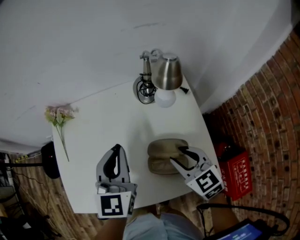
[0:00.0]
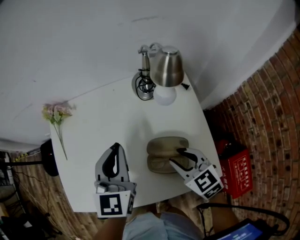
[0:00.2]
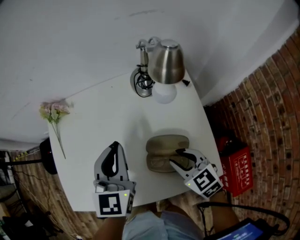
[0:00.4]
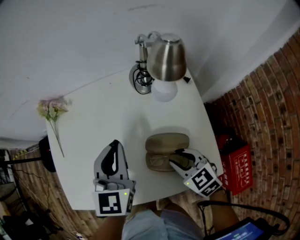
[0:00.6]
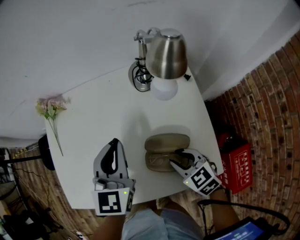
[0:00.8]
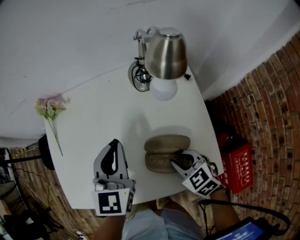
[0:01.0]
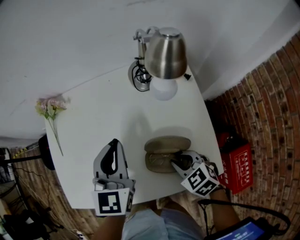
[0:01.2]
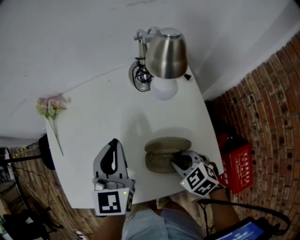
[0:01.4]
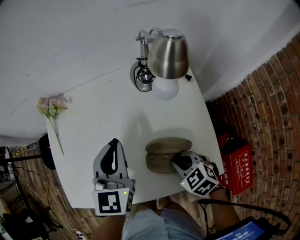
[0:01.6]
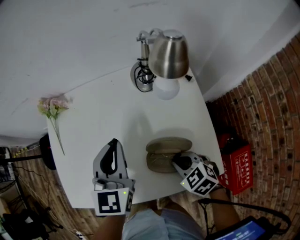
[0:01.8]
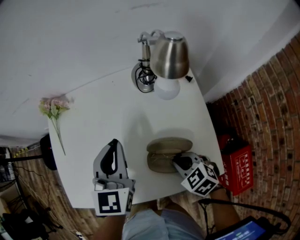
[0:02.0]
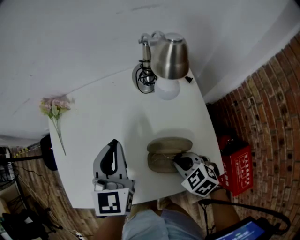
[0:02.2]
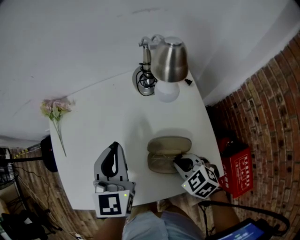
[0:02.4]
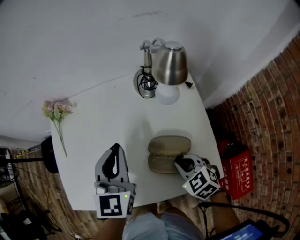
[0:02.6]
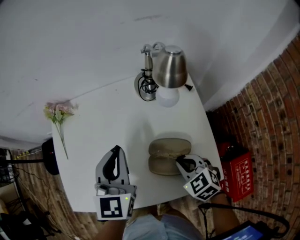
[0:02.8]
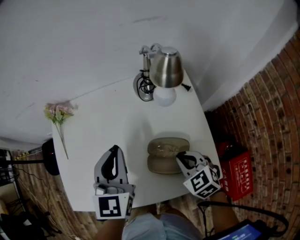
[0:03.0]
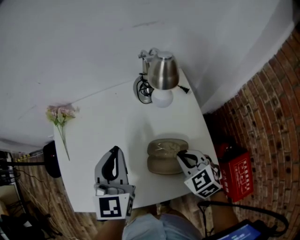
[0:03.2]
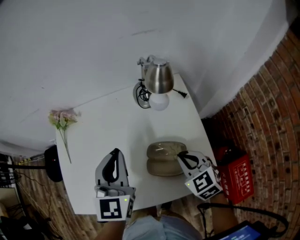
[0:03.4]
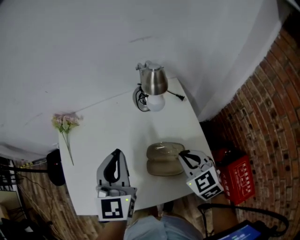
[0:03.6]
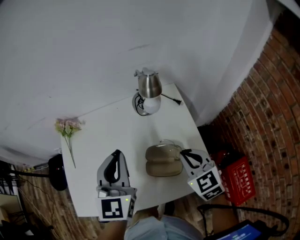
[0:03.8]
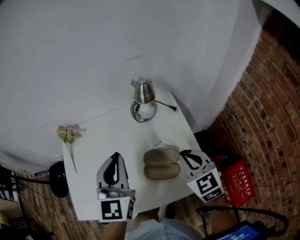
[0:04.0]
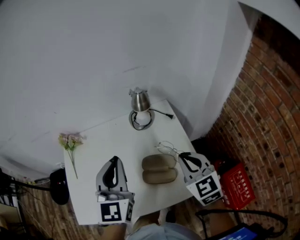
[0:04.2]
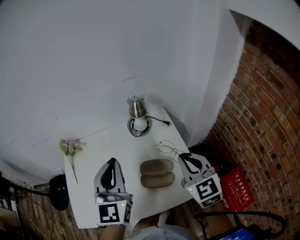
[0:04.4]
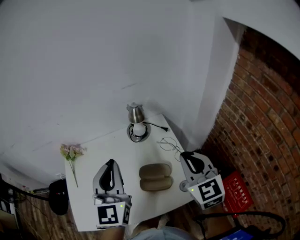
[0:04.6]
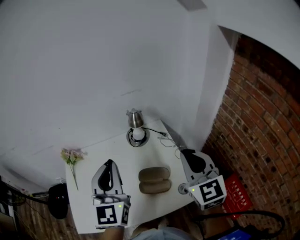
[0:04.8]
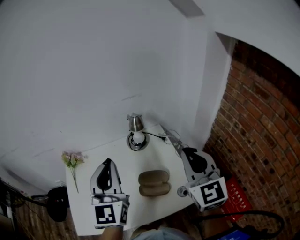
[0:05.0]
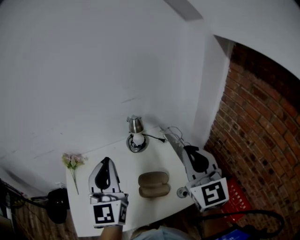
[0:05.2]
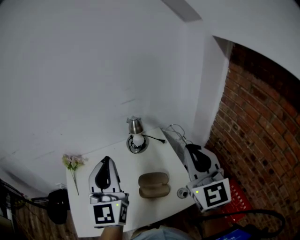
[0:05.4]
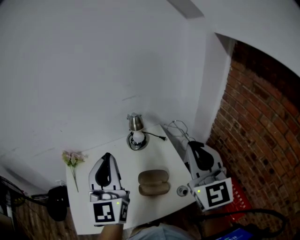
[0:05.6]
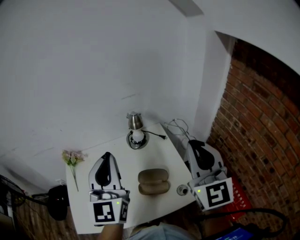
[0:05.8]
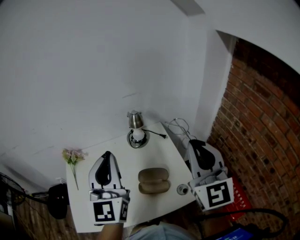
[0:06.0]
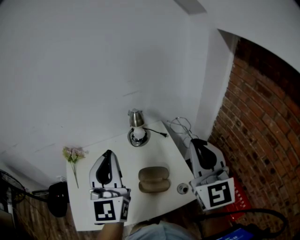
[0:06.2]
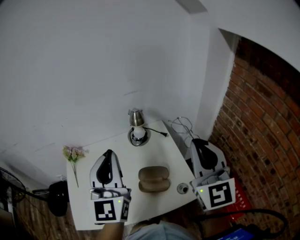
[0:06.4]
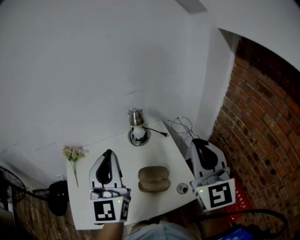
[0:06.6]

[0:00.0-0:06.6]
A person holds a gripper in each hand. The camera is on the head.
0:00.0 to 0:01.6: The right gripper goes some 10 cm downward, turns by approximately 30 degrees, and closes its fingers.
0:01.6 to 0:03.2: The right gripper goes some 5 cm upward.
0:03.2 to 0:05.0: The left gripper travels upward by about 20 cm, and rotates some 20 degrees. Meanwhile the right gripper travels upward by approximately 30 cm, and angles its fingers upward, by approximately 40 degrees.
0:05.0 to 0:06.6: The right gripper moves roughly 5 cm.

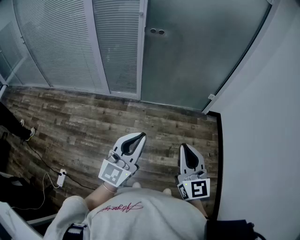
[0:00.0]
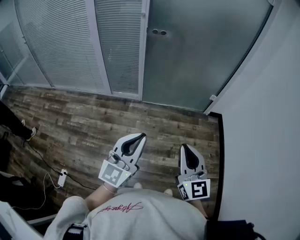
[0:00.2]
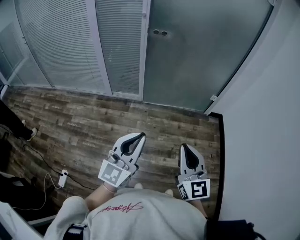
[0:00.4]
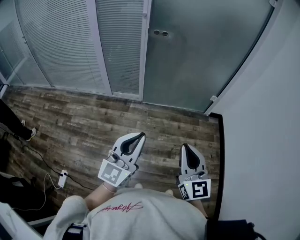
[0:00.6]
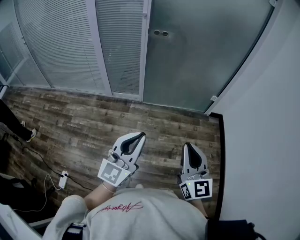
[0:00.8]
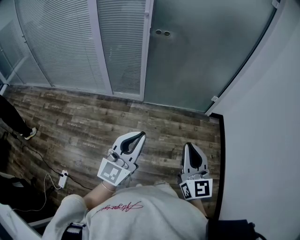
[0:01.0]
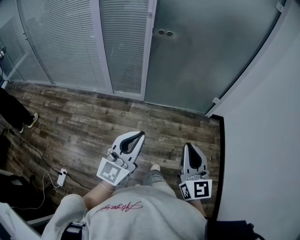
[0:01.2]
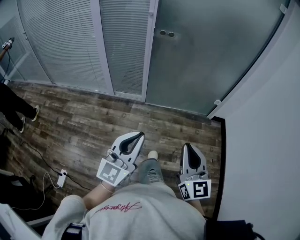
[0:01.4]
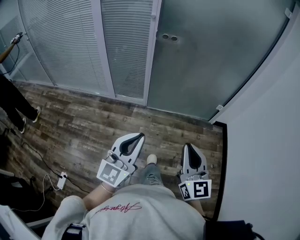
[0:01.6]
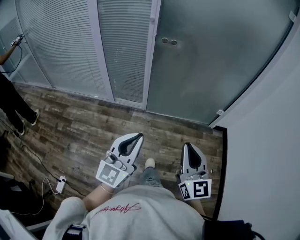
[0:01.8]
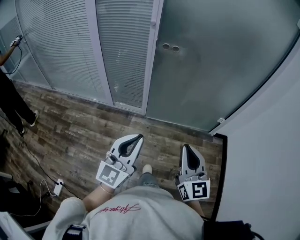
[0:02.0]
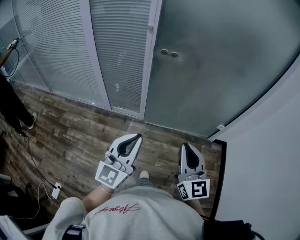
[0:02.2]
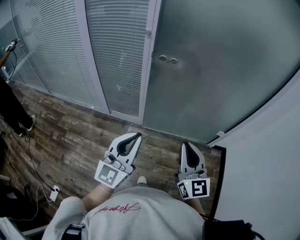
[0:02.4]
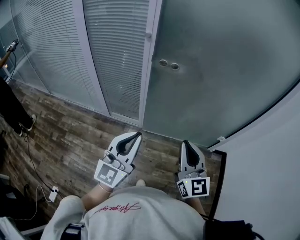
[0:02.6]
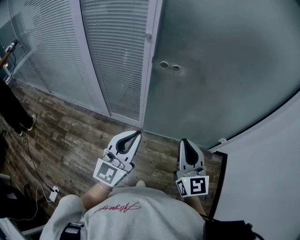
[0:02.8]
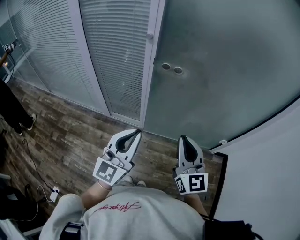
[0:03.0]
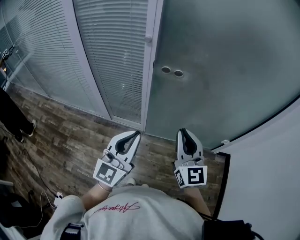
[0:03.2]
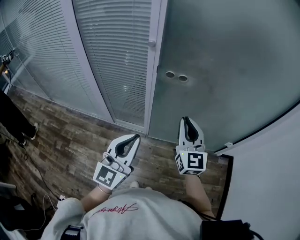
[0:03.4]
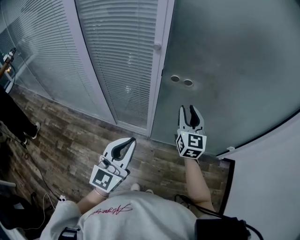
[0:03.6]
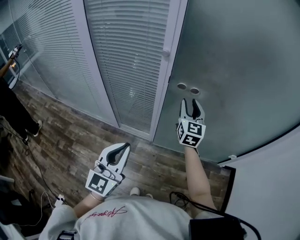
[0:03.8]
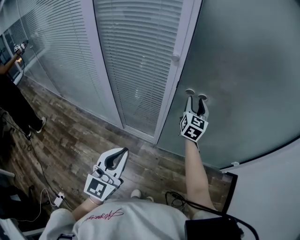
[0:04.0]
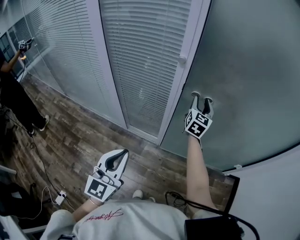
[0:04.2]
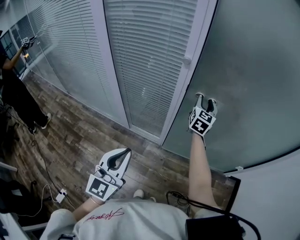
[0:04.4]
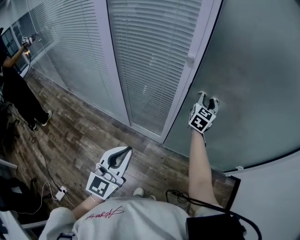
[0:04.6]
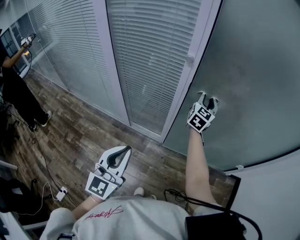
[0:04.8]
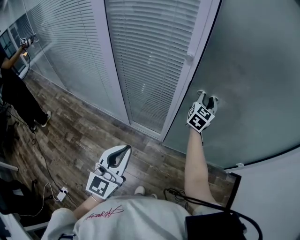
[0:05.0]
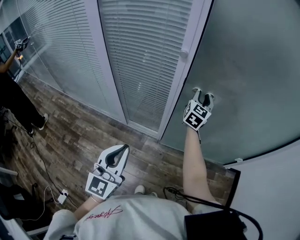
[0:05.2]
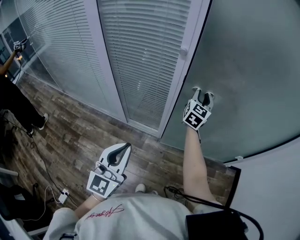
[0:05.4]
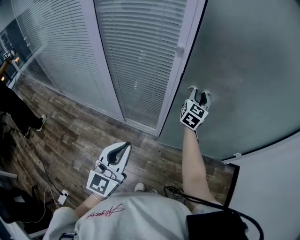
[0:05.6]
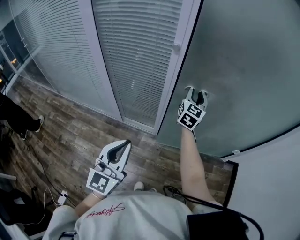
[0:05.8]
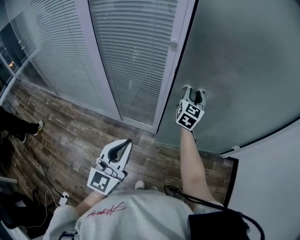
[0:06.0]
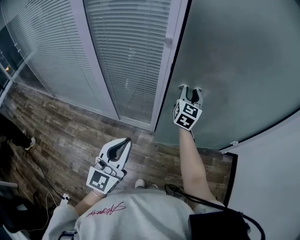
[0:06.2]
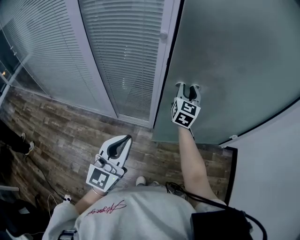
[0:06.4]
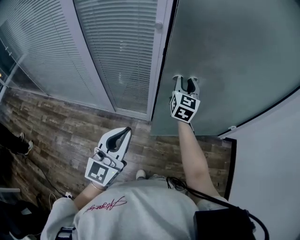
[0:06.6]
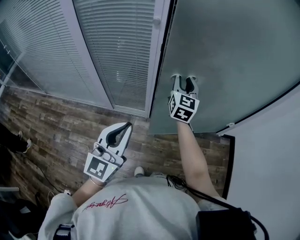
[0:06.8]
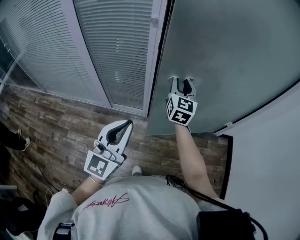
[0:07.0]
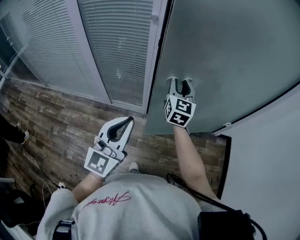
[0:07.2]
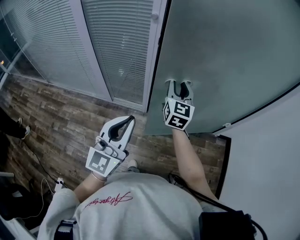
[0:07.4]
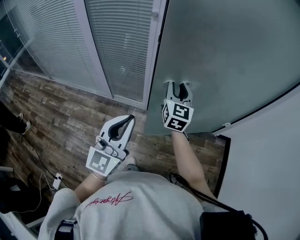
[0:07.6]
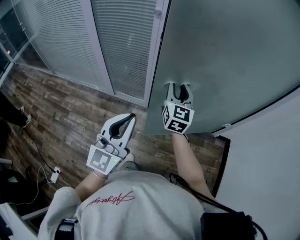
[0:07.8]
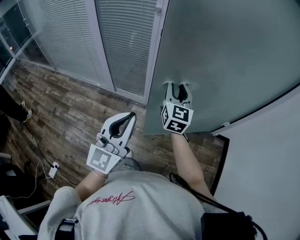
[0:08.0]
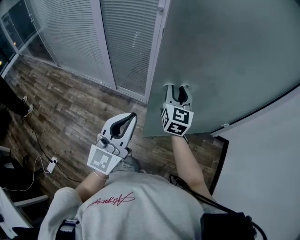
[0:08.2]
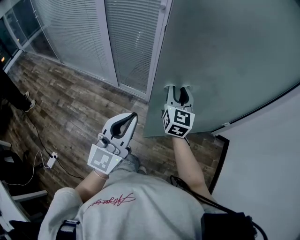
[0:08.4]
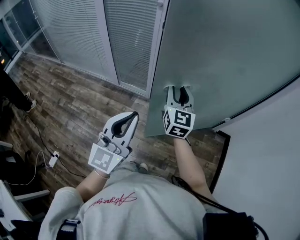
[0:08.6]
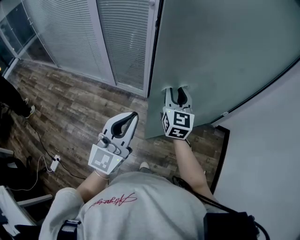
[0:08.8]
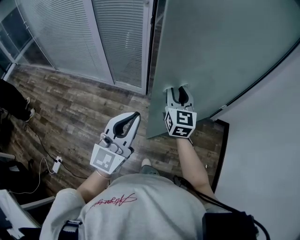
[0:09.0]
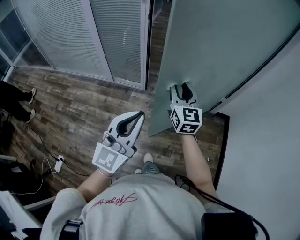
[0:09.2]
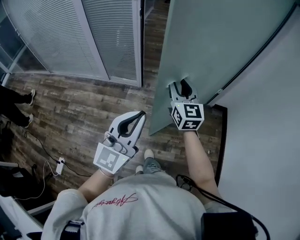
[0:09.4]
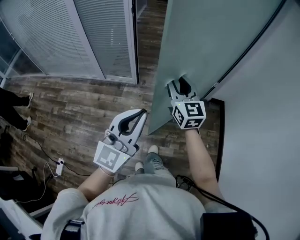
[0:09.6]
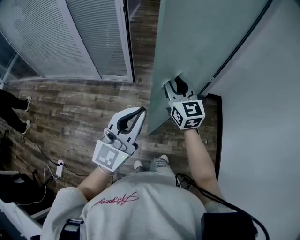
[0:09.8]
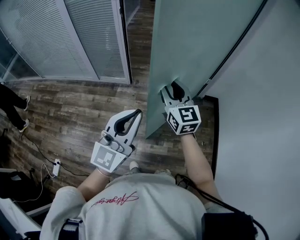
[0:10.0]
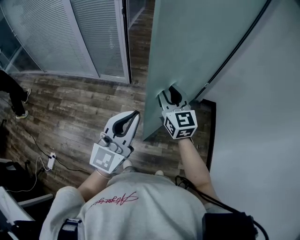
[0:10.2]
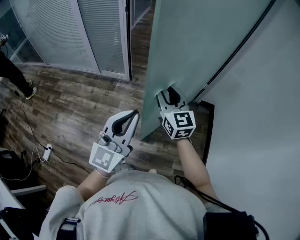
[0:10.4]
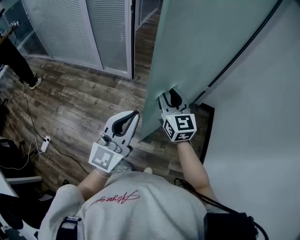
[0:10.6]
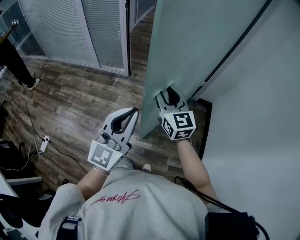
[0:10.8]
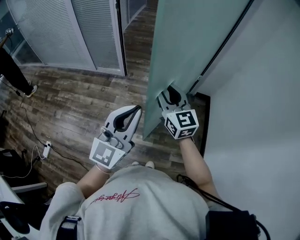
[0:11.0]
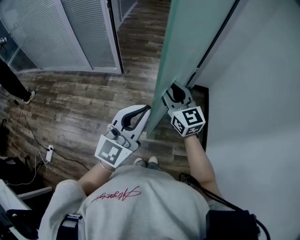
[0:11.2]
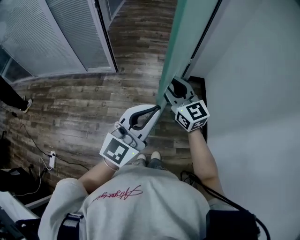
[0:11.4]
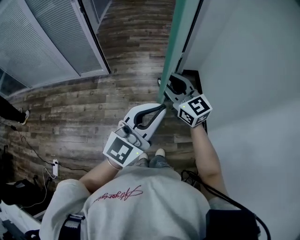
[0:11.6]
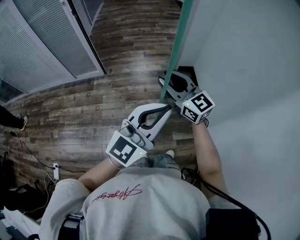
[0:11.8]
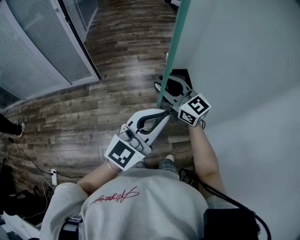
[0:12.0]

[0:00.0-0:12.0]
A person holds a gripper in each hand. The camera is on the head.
0:00.0 to 0:01.6: The right gripper moves forward, some 10 cm; the left gripper travels forward and to the left by some 10 cm.
0:01.6 to 0:03.0: Both grippers travel together forward, about 35 cm.
0:03.0 to 0:04.4: The right gripper heads forward, covering roughly 35 cm, swivels roughly 30 degrees, and opens; the left gripper moves to the left, some 15 cm.
0:04.4 to 0:06.0: The right gripper shifts some 5 cm backward.
0:06.0 to 0:07.6: The right gripper shifts roughly 15 cm backward. Meanwhile the left gripper heads to the right and backward, covering roughly 10 cm.
0:07.6 to 0:09.0: The left gripper moves backward and to the right, about 20 cm; the right gripper travels backward by roughly 20 cm.
0:09.0 to 0:10.4: The right gripper heads backward and to the right, covering approximately 20 cm. Meanwhile the left gripper is displaced to the right and backward by approximately 20 cm.
0:10.4 to 0:12.0: The grippers both shift to the right and backward by approximately 25 cm. The left gripper changes its angle by roughly 40 degrees.

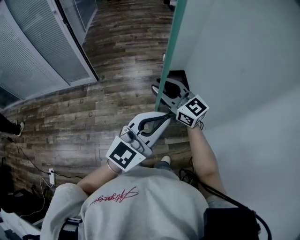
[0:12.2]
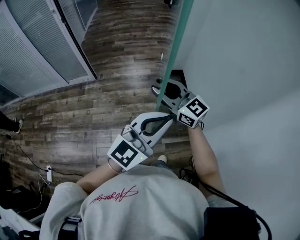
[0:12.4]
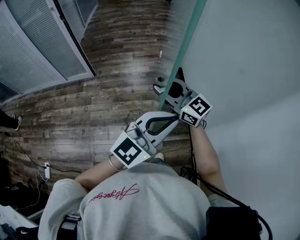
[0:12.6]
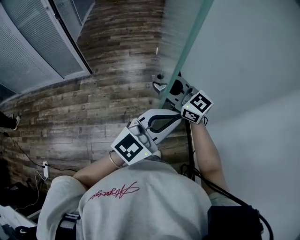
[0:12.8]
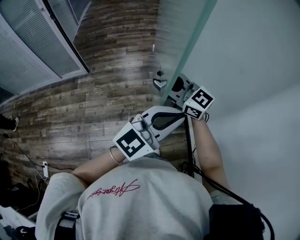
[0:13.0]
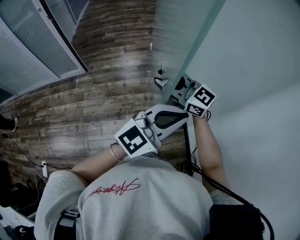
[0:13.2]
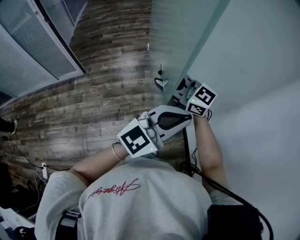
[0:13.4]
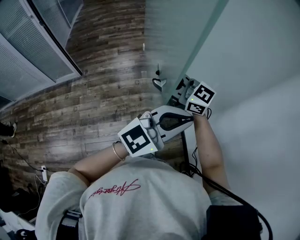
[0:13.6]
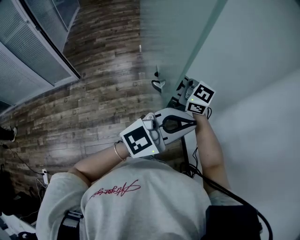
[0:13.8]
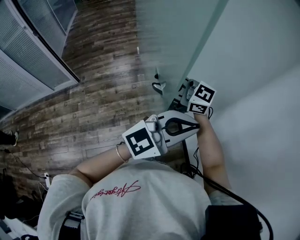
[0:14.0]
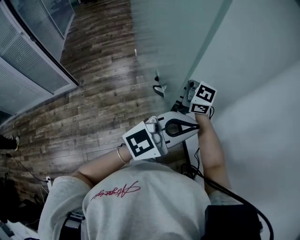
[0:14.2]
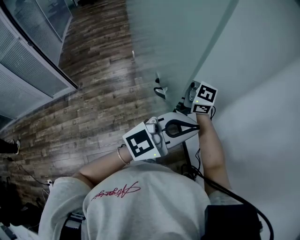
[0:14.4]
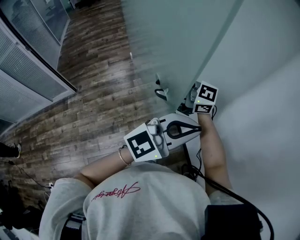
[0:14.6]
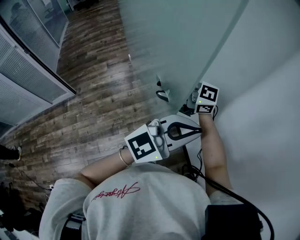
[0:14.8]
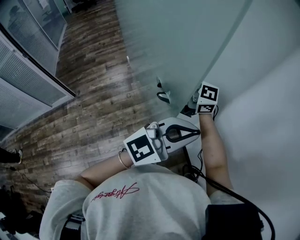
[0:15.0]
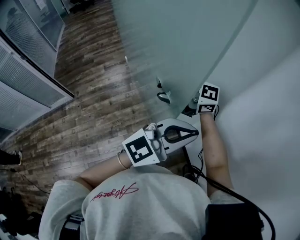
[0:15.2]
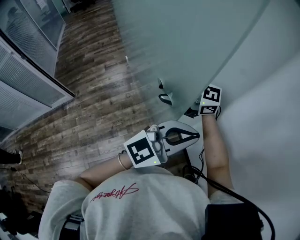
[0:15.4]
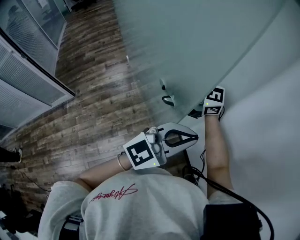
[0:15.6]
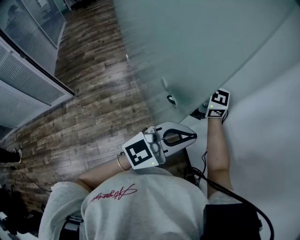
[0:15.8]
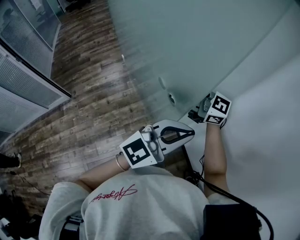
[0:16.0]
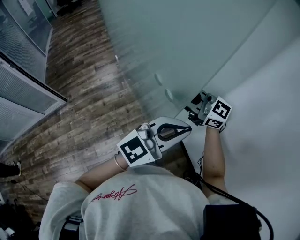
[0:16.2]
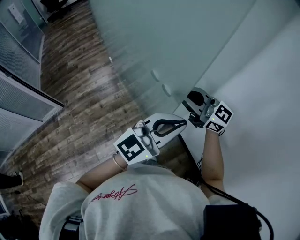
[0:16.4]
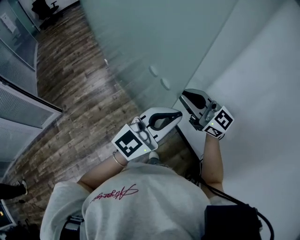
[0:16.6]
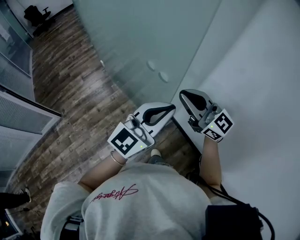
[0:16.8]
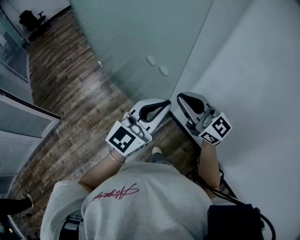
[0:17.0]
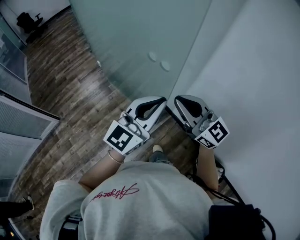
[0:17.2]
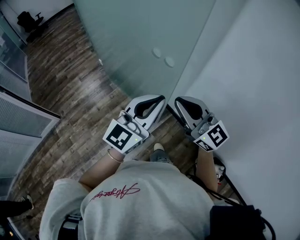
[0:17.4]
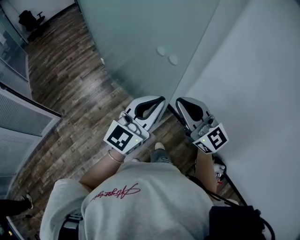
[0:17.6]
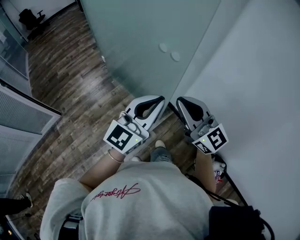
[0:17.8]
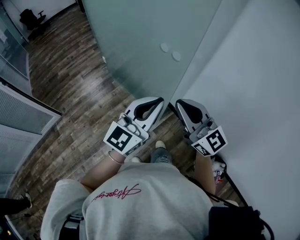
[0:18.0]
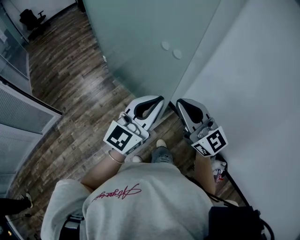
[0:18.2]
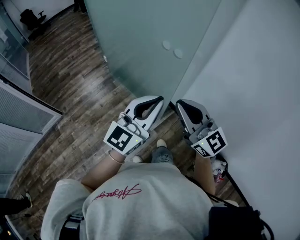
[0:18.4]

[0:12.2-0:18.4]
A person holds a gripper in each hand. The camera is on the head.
0:12.2 to 0:13.8: The right gripper ends up approximately 15 cm from where it was, while the left gripper changes place by some 25 cm, and rotates approximately 30 degrees.
0:13.8 to 0:15.4: The left gripper changes place by approximately 5 cm. Meanwhile the right gripper moves some 10 cm.
0:15.4 to 0:16.8: The left gripper moves about 10 cm. Meanwhile the right gripper shifts by some 10 cm, swivels about 50 degrees, and closes its fingers.
0:16.8 to 0:18.4: The left gripper heads to the left and backward, covering roughly 15 cm, while the right gripper heads backward and to the left, covering roughly 15 cm.
